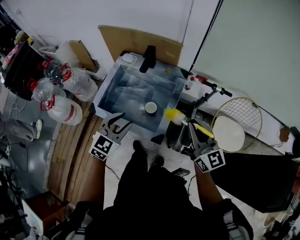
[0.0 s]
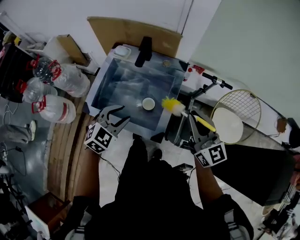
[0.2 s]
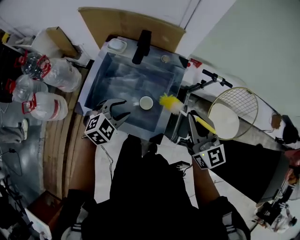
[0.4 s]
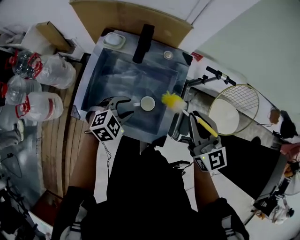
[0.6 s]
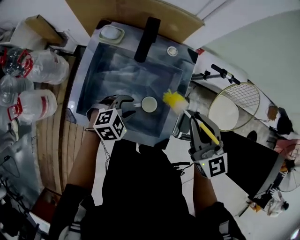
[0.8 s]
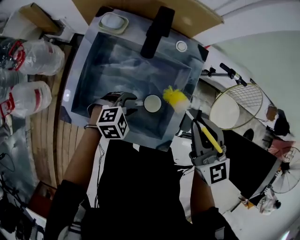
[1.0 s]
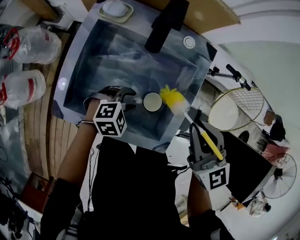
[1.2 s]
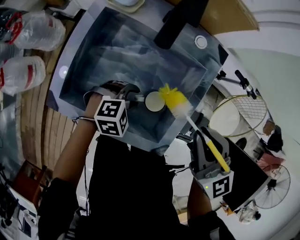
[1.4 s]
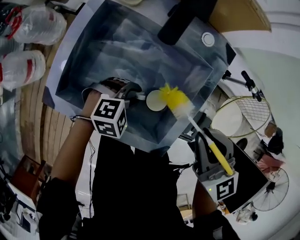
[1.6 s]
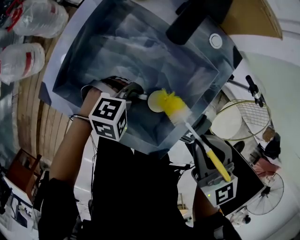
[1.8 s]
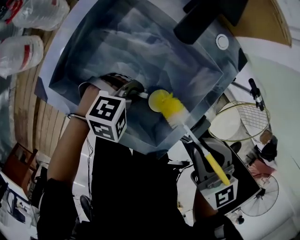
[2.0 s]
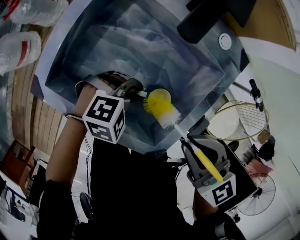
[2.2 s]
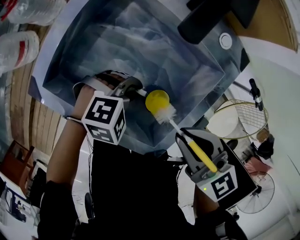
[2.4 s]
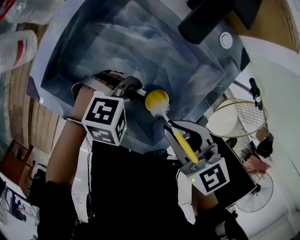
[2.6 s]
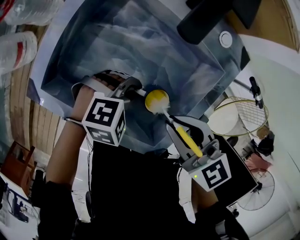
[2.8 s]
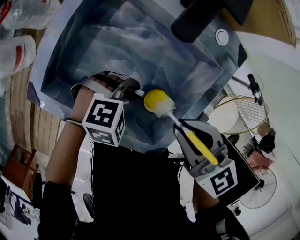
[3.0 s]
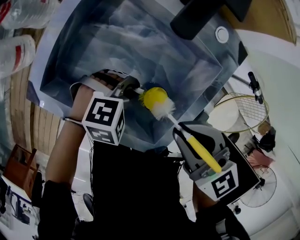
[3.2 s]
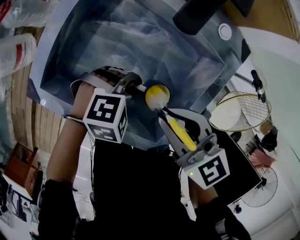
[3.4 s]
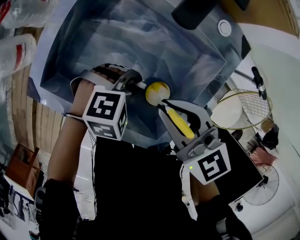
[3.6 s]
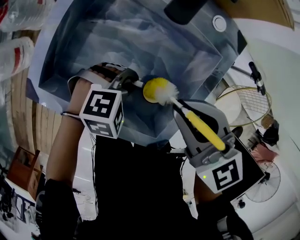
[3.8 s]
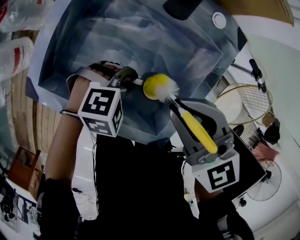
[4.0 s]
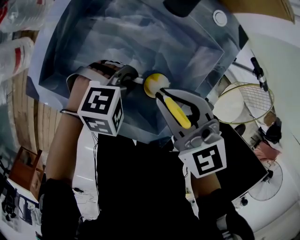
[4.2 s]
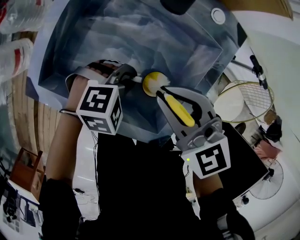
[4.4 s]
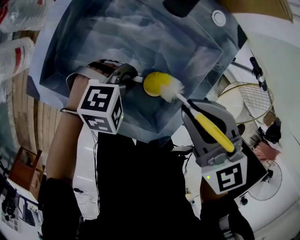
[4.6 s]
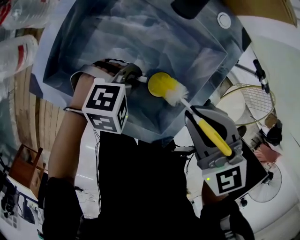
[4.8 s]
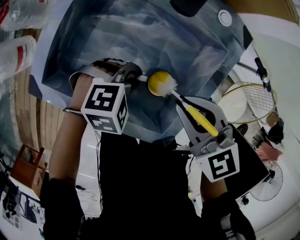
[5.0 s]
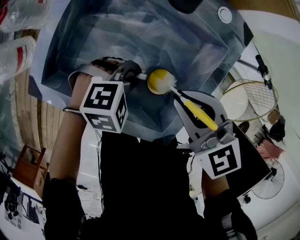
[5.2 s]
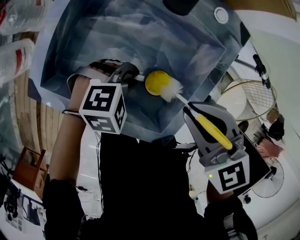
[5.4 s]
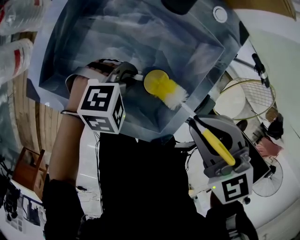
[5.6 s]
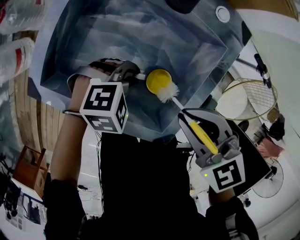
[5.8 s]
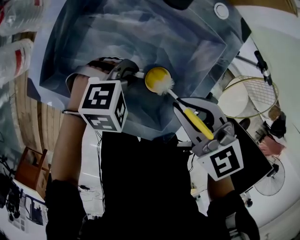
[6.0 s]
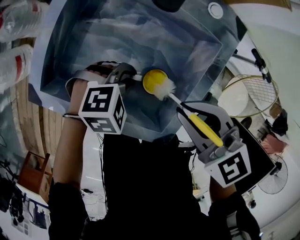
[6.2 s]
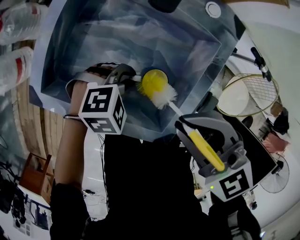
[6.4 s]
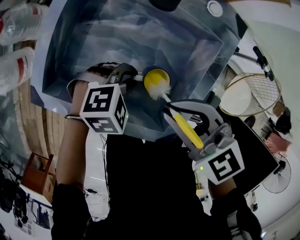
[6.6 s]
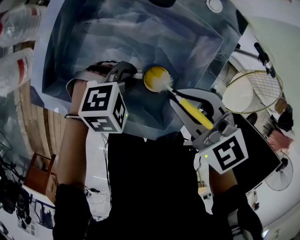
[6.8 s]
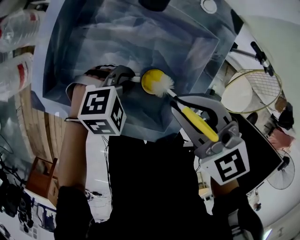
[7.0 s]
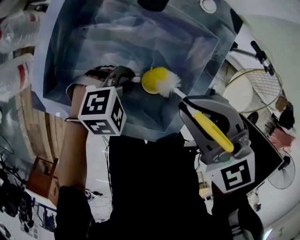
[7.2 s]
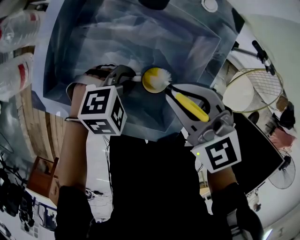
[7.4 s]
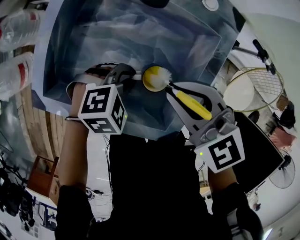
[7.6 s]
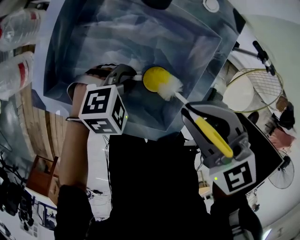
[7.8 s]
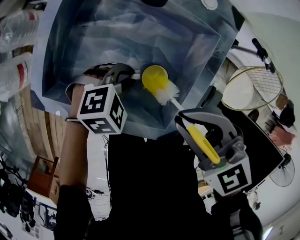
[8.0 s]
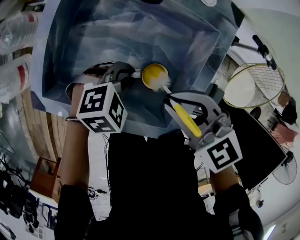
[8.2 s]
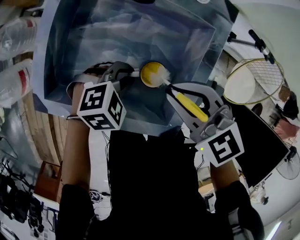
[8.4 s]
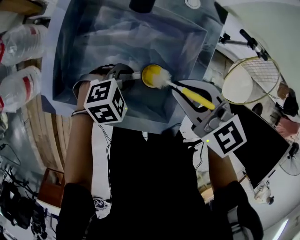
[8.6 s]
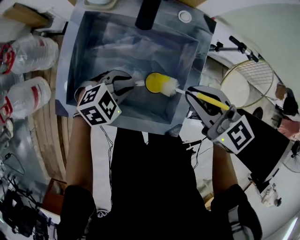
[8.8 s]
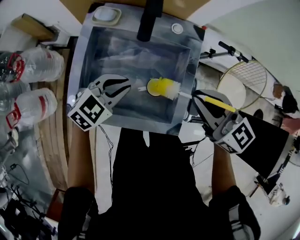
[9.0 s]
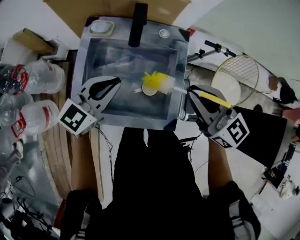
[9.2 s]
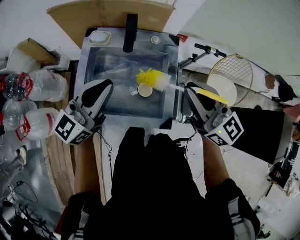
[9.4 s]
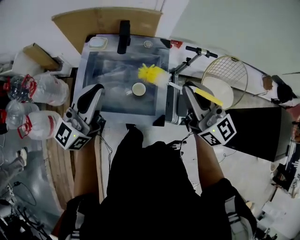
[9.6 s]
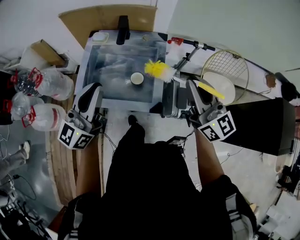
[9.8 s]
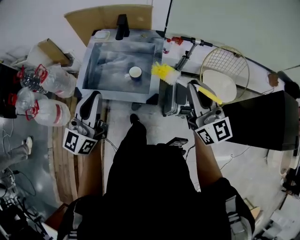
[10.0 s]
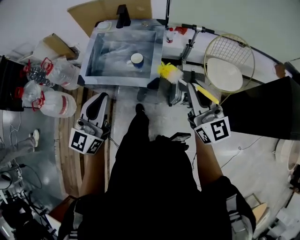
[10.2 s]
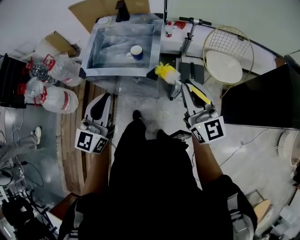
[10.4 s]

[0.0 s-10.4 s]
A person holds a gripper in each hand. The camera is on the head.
0.0 to 1.4 s: The left gripper is displaced downward by some 30 cm, and rotates about 50 degrees. The right gripper moves to the left, downward and forward, some 20 cm.
1.4 to 3.0 s: The right gripper moves downward, approximately 10 cm, and rotates about 30 degrees. Meanwhile the left gripper closes.
3.0 to 4.4 s: The right gripper swings up and down, about 5 cm each way, with 2 reversals.
4.4 to 6.0 s: The right gripper goes up and down, some 5 cm each way, reversing 3 times.
6.0 to 7.4 s: The right gripper moves up and down over some 5 cm, changing direction 3 times.
7.4 to 9.0 s: The right gripper goes up and down, roughly 15 cm each way, reversing 2 times, and rotates about 30 degrees; the left gripper shifts approximately 15 cm upward, and changes its angle by some 30 degrees.
9.0 to 10.4 s: The left gripper travels backward and upward by some 40 cm, and tilts its fingers roughly 40 degrees upward. Meanwhile the right gripper shifts approximately 35 cm backward and to the right, and rotates some 40 degrees.

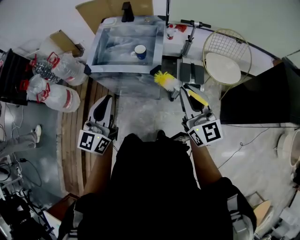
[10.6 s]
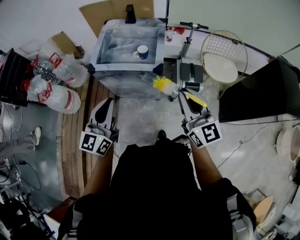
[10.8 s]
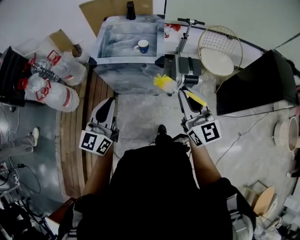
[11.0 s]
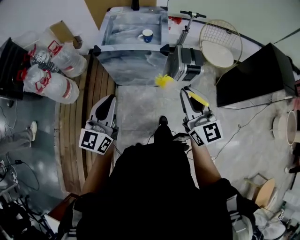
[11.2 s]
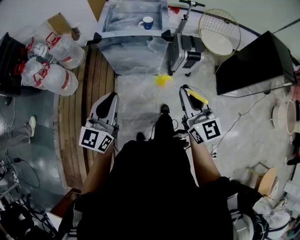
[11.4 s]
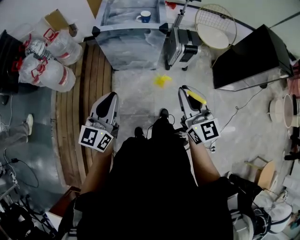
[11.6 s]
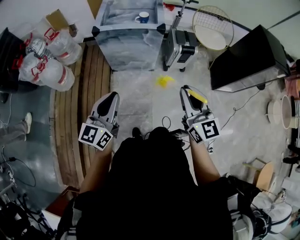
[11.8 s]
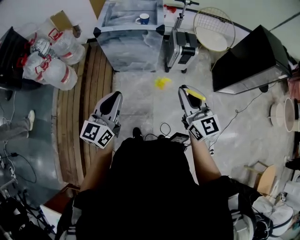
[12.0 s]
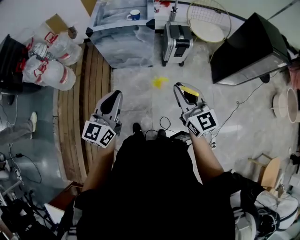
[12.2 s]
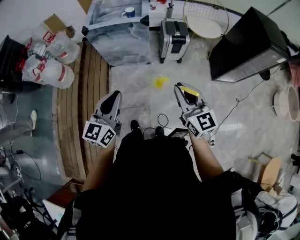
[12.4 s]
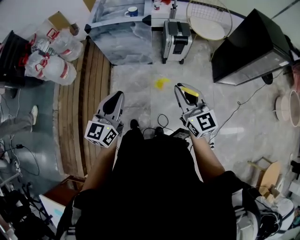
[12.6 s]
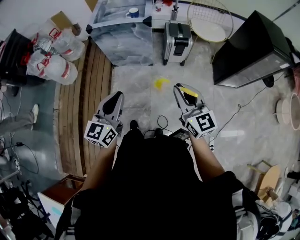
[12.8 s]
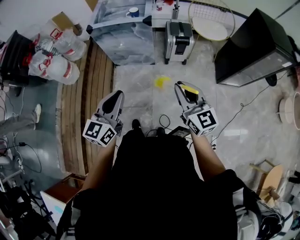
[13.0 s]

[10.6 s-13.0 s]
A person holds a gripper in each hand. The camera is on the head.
10.6 to 11.8 s: The right gripper shifts some 30 cm backward, while the left gripper shifts roughly 30 cm backward and to the left.
11.8 to 13.0 s: Both grippers travel together to the right and backward, approximately 15 cm.

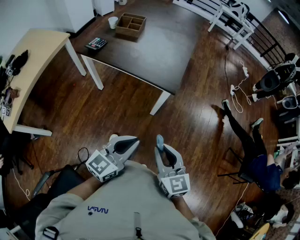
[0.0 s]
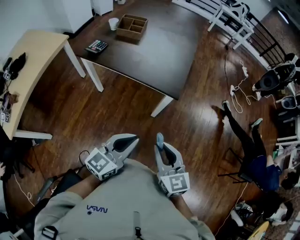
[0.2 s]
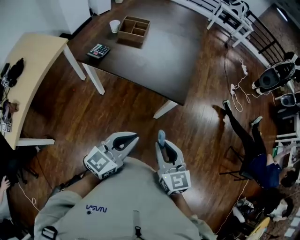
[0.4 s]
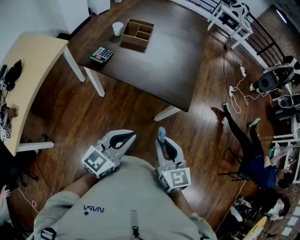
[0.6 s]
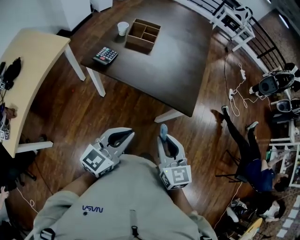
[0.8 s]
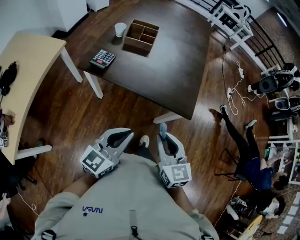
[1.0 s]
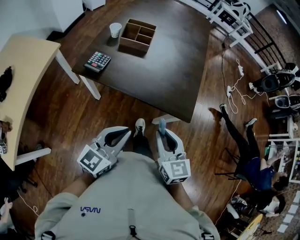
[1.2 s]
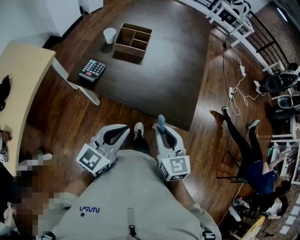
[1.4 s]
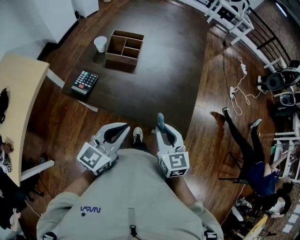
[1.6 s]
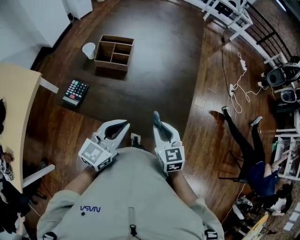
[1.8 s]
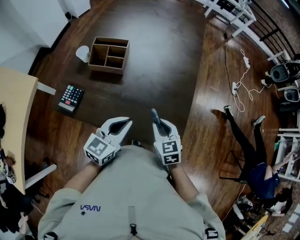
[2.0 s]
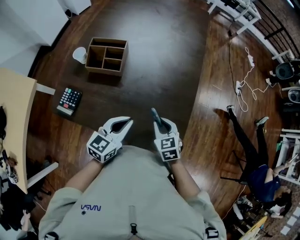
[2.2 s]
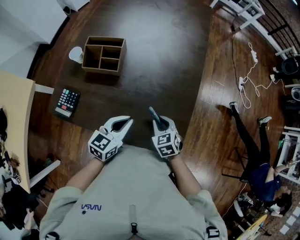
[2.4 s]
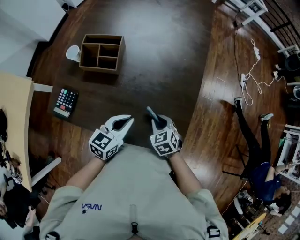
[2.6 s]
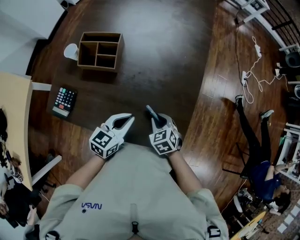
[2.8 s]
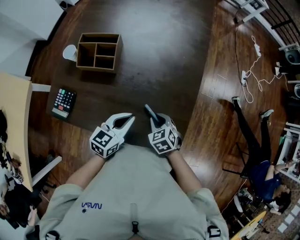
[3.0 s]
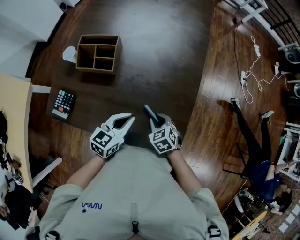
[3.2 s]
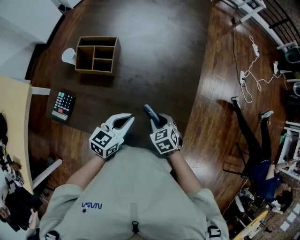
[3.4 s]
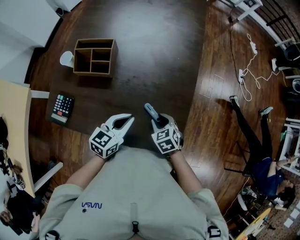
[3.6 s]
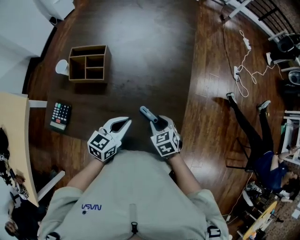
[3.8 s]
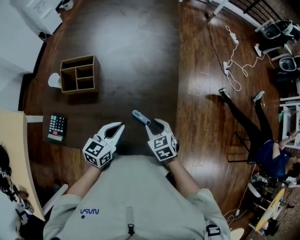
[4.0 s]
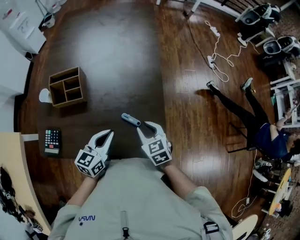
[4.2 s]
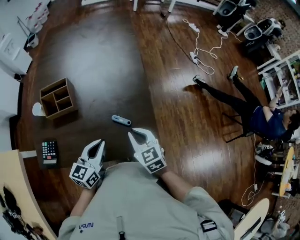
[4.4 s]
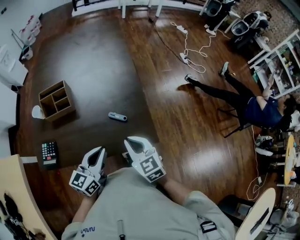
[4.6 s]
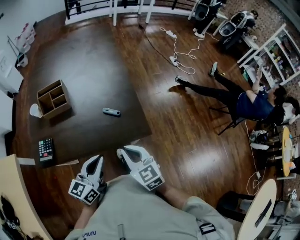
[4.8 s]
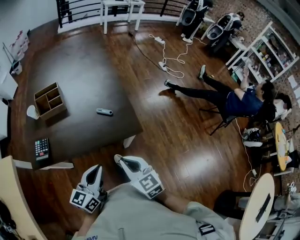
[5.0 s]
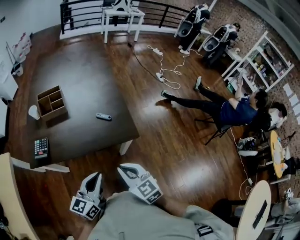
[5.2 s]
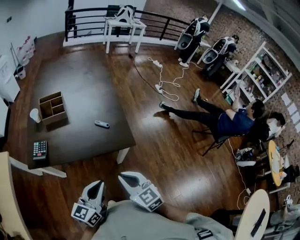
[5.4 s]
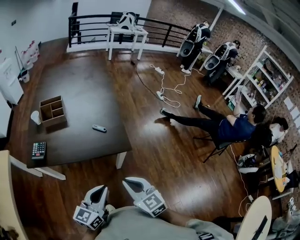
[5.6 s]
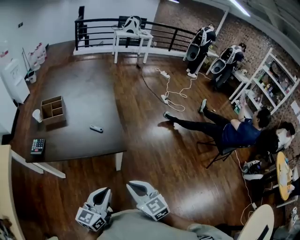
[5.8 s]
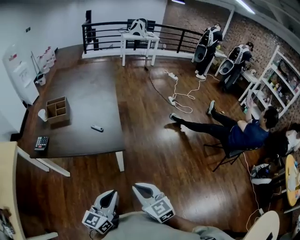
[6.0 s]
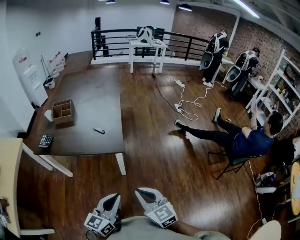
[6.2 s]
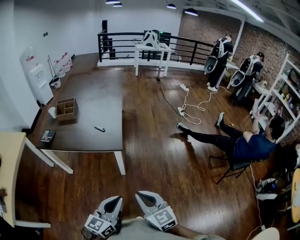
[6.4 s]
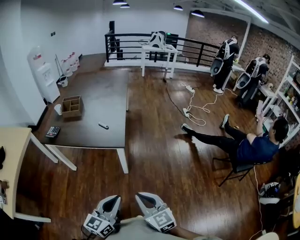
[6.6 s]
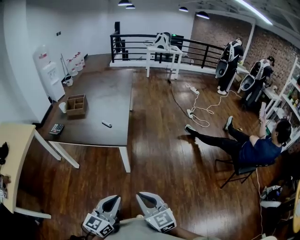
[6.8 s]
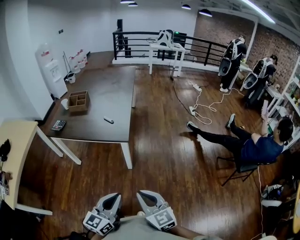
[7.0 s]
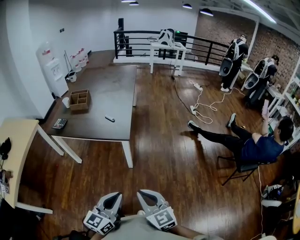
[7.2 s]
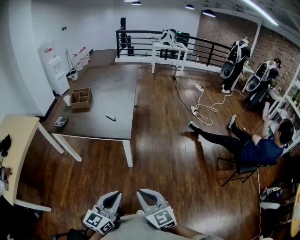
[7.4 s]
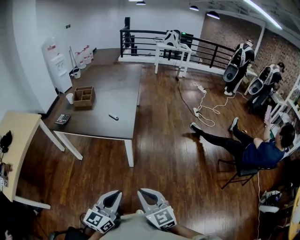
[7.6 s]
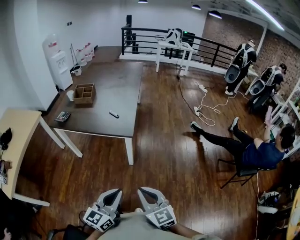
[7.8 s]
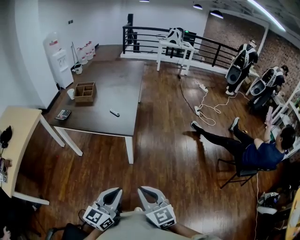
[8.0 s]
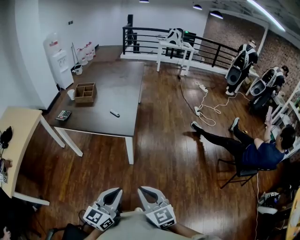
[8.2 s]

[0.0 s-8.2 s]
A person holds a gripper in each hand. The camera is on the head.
0.0 to 1.6 s: The two grippers go about 35 cm forward and to the left.
1.6 to 3.2 s: The right gripper is displaced downward and forward by roughly 25 cm, and tips its fingers downward by roughly 30 degrees. The left gripper heads forward, downward and to the right, covering roughly 20 cm, and turns by roughly 20 degrees.
3.2 to 5.0 s: Both grippers move backward and upward, roughly 25 cm. The right gripper points its fingers approximately 30 degrees further upward. The left gripper swivels some 20 degrees.
5.0 to 6.6 s: Both grippers move to the right and backward, roughly 35 cm.
6.6 to 8.2 s: The grippers move only a little.

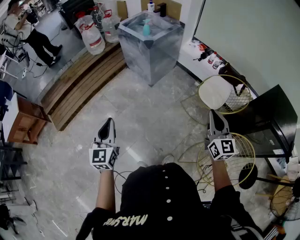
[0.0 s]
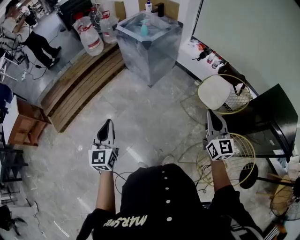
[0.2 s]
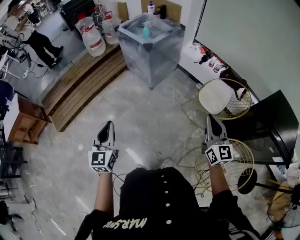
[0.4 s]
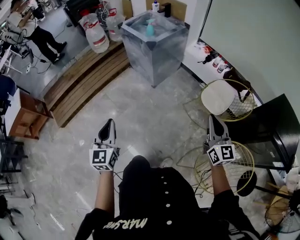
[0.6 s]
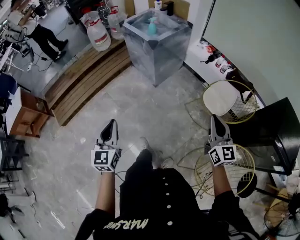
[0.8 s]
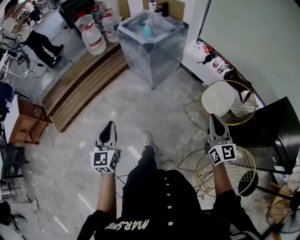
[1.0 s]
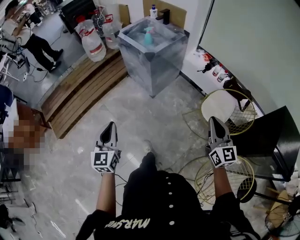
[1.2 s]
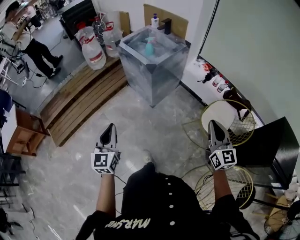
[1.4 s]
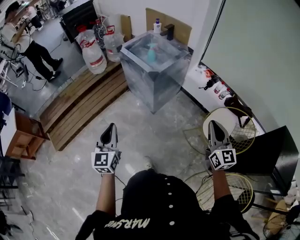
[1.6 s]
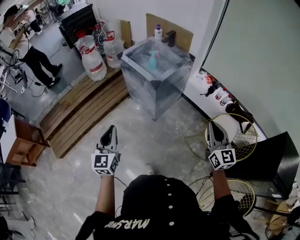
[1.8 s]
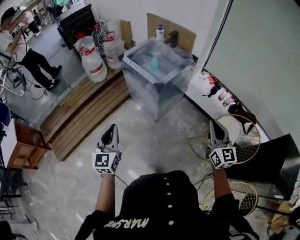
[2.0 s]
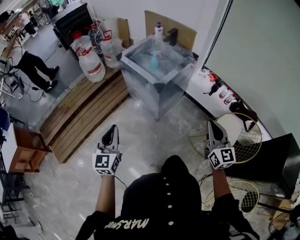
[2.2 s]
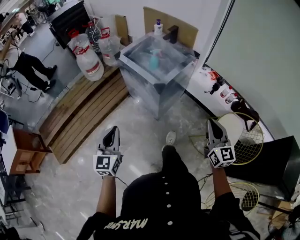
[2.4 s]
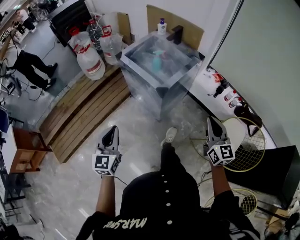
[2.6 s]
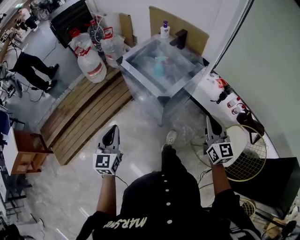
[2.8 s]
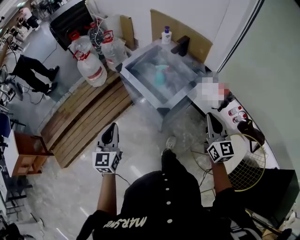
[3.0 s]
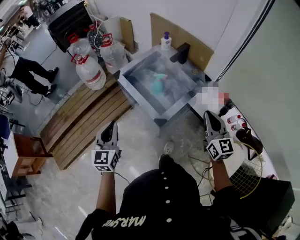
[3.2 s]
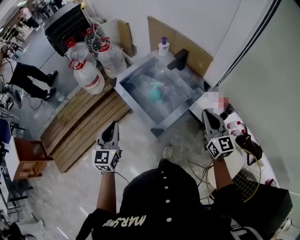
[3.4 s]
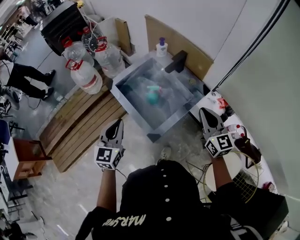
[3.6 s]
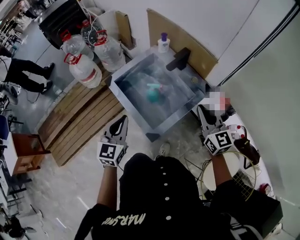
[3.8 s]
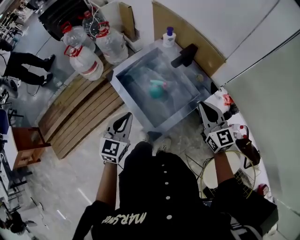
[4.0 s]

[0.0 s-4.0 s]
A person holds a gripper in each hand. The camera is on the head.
0.0 to 1.4 s: Both grippers travel together forward, some 20 cm.
1.4 to 2.6 s: The grippers both shift forward by about 25 cm.
2.6 to 4.0 s: The left gripper shifts some 40 cm forward and to the right. The right gripper shifts approximately 40 cm forward, and turns by approximately 20 degrees.
